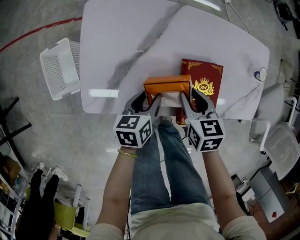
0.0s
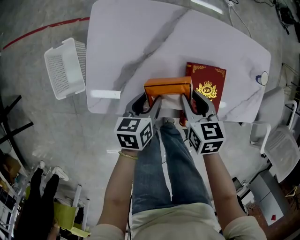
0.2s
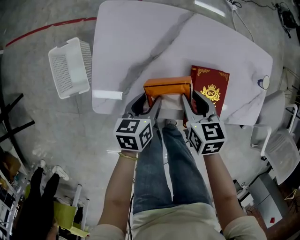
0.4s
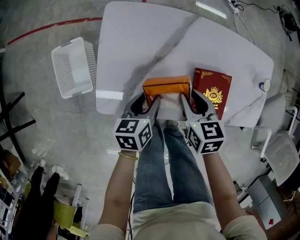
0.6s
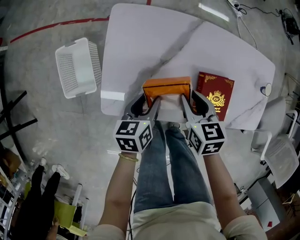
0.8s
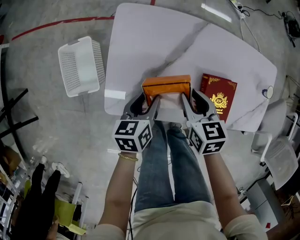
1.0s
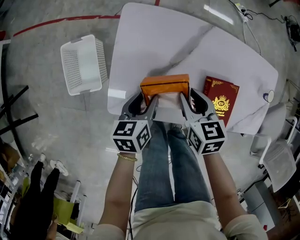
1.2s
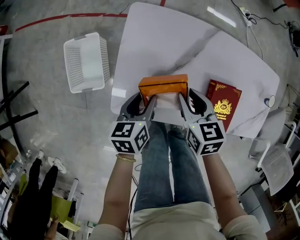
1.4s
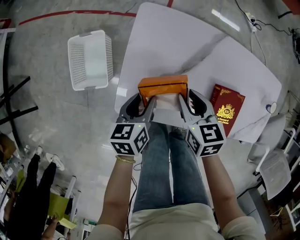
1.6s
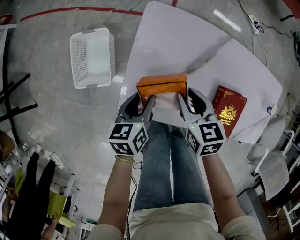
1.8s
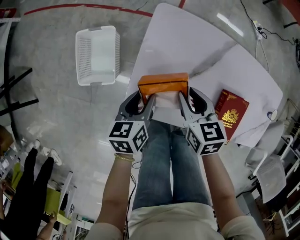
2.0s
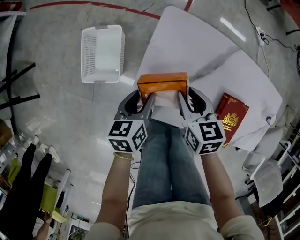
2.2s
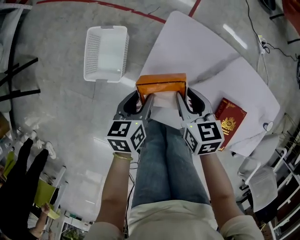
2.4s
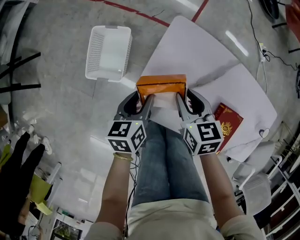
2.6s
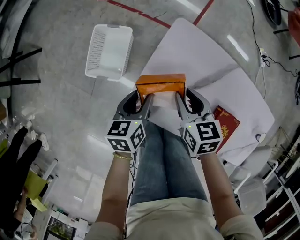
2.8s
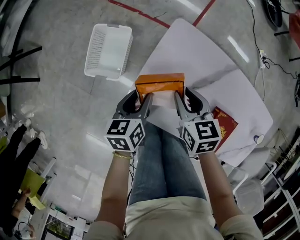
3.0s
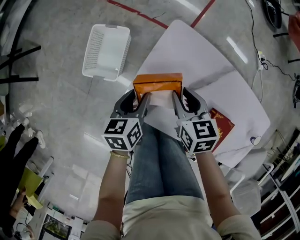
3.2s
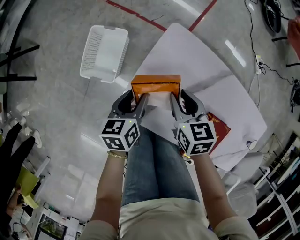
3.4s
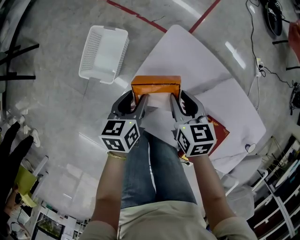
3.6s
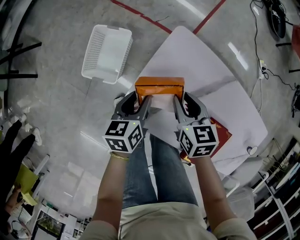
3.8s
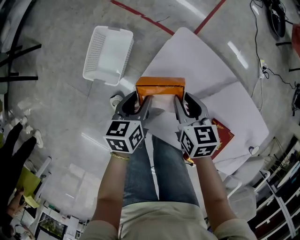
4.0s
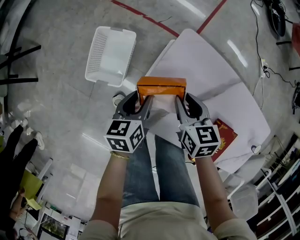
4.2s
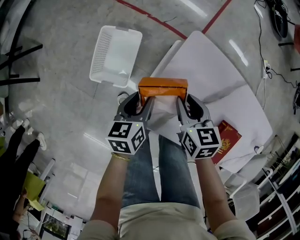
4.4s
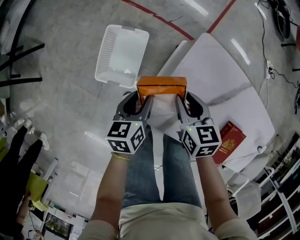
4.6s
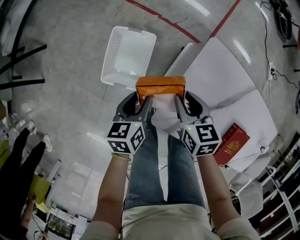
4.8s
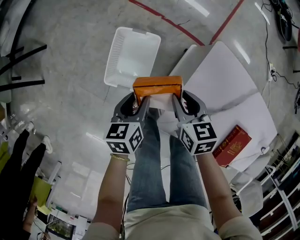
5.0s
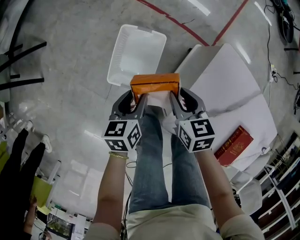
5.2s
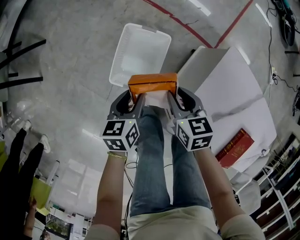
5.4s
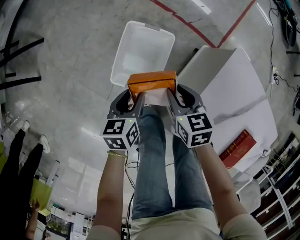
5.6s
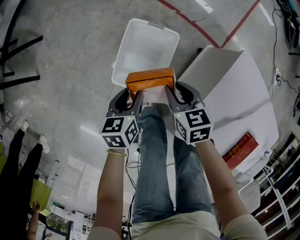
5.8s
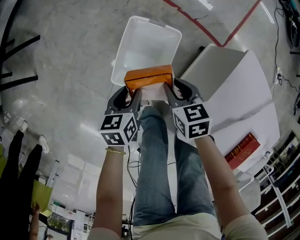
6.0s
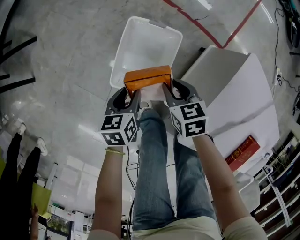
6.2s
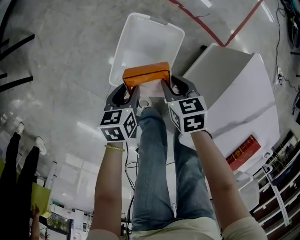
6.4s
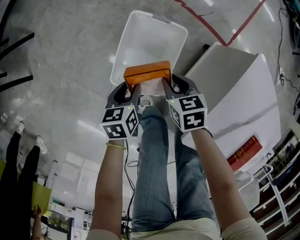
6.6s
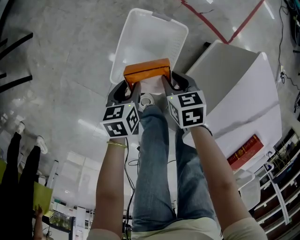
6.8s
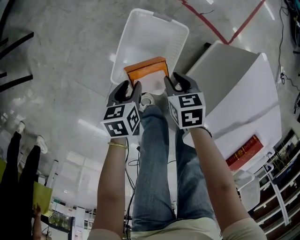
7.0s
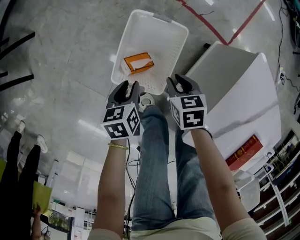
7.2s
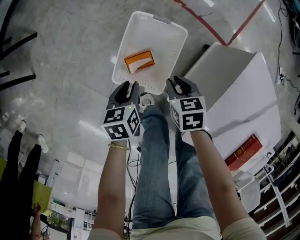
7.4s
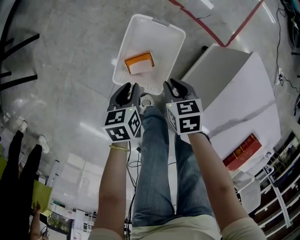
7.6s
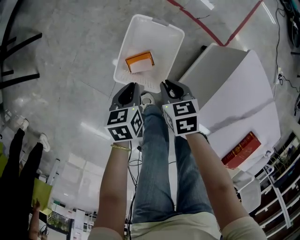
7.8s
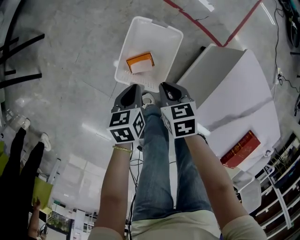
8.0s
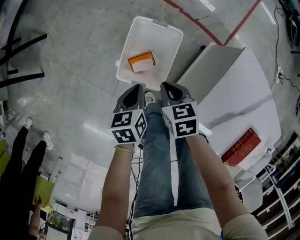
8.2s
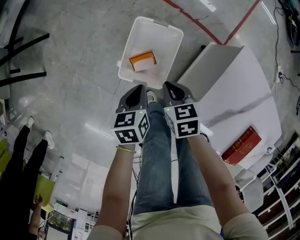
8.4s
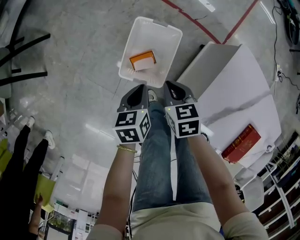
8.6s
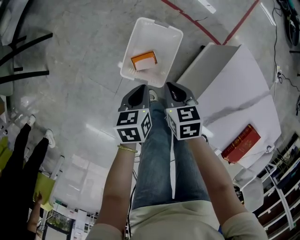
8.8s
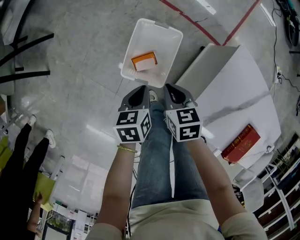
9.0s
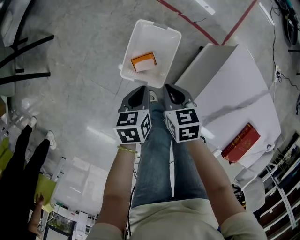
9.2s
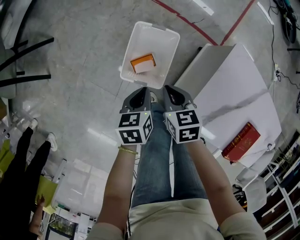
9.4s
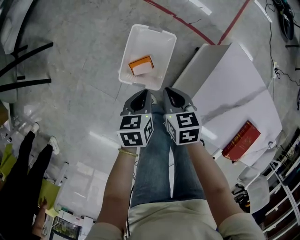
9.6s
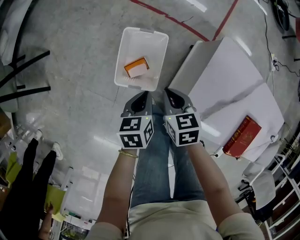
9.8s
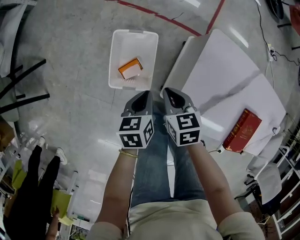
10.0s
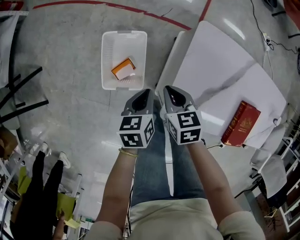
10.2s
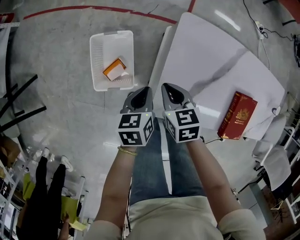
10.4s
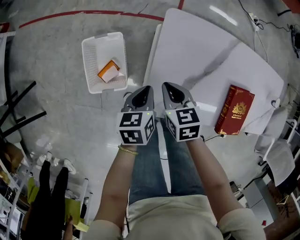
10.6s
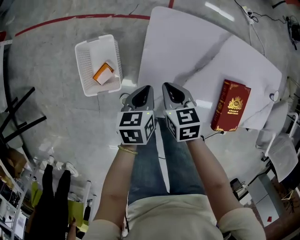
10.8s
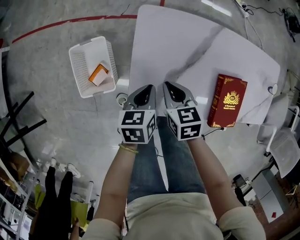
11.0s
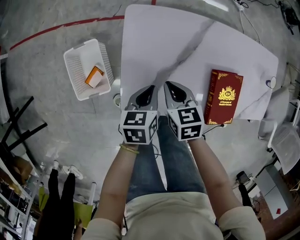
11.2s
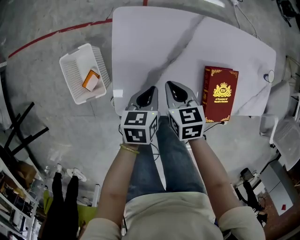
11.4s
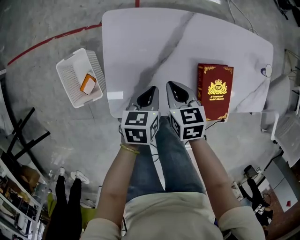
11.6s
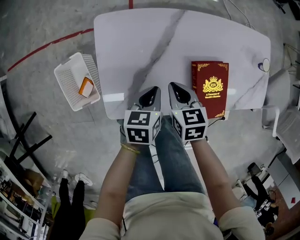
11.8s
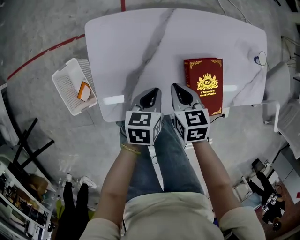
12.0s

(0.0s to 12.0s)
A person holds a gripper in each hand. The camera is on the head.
0.0s - 1.6s: Both grippers move to the left, roughly 15 cm.
1.6s - 3.0s: The right gripper moves to the left and forward, some 10 cm. The left gripper is displaced to the left by approximately 5 cm.
3.0s - 4.4s: The two grippers go approximately 5 cm to the left.
4.4s - 6.0s: The two grippers go approximately 25 cm to the left and downward.
6.0s - 7.6s: The left gripper travels downward and back again, roughly 10 cm each way.
7.6s - 9.0s: The grippers both shift upward by approximately 10 cm.
9.0s - 10.4s: Both grippers travel together to the right, approximately 20 cm. The left gripper turns by roughly 20 degrees.
10.4s - 12.0s: The right gripper changes place by some 35 cm, and rotates some 20 degrees. The left gripper shifts by approximately 35 cm, and rotates roughly 30 degrees.

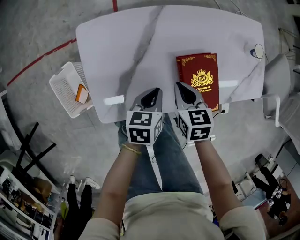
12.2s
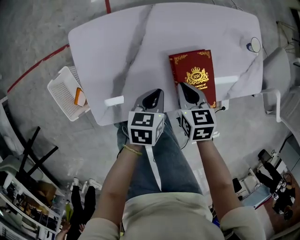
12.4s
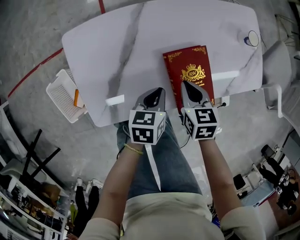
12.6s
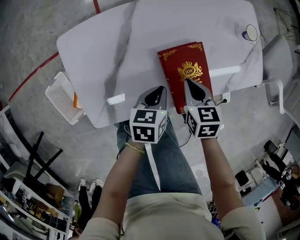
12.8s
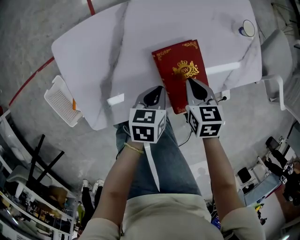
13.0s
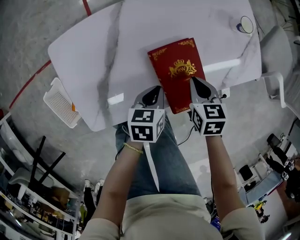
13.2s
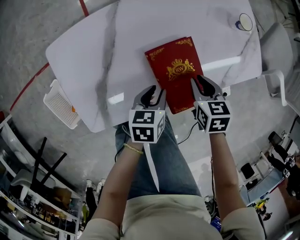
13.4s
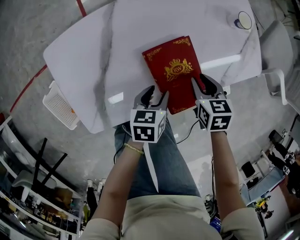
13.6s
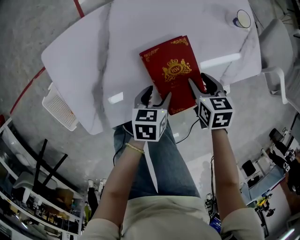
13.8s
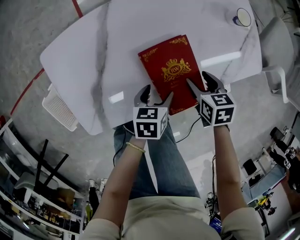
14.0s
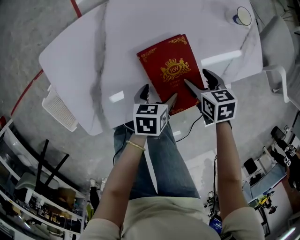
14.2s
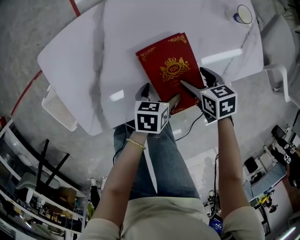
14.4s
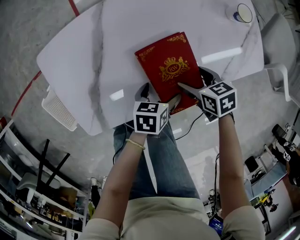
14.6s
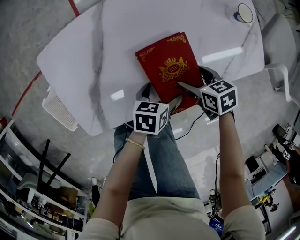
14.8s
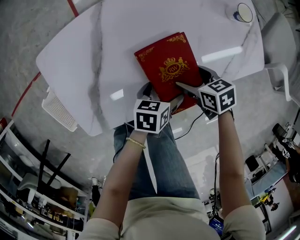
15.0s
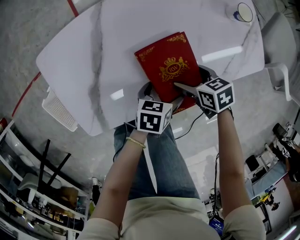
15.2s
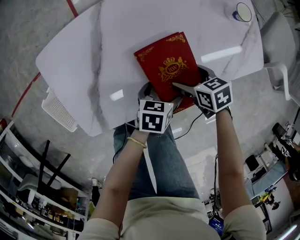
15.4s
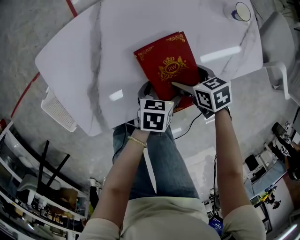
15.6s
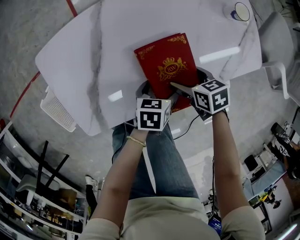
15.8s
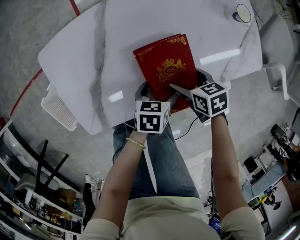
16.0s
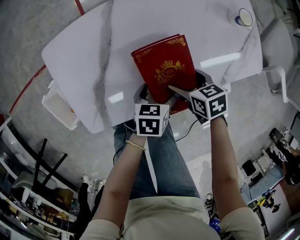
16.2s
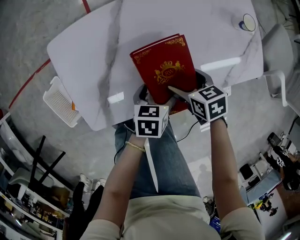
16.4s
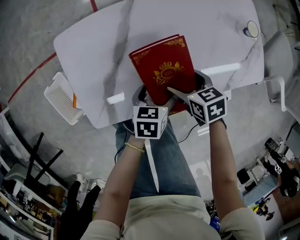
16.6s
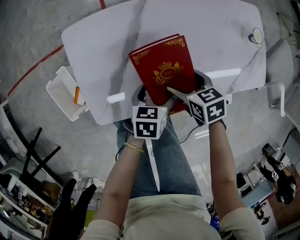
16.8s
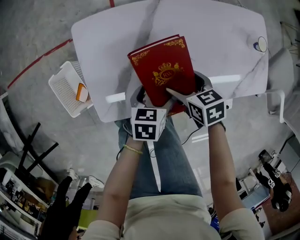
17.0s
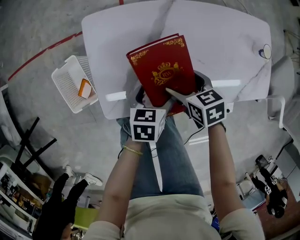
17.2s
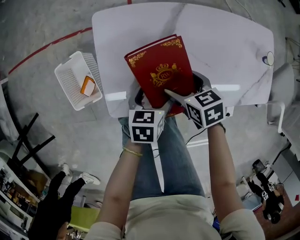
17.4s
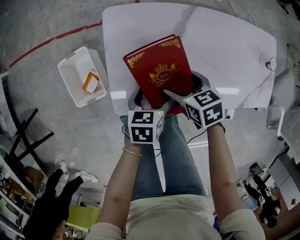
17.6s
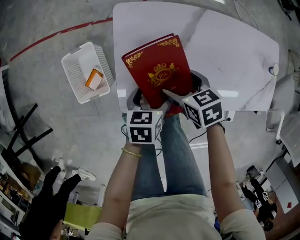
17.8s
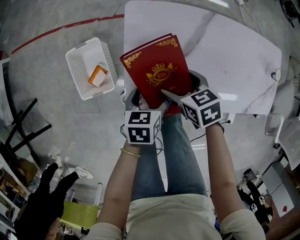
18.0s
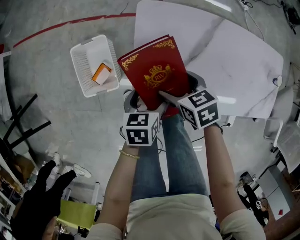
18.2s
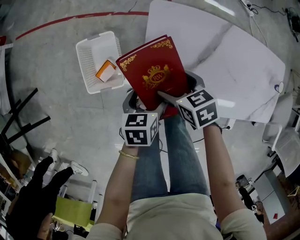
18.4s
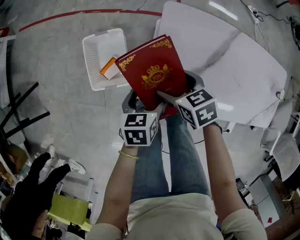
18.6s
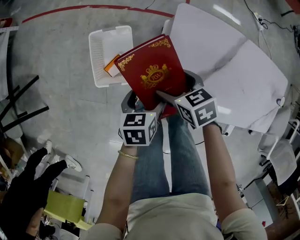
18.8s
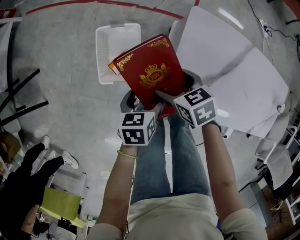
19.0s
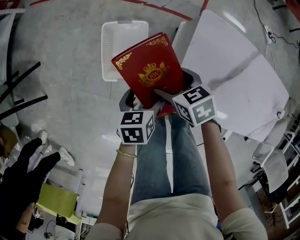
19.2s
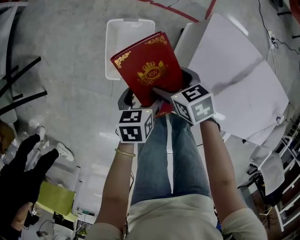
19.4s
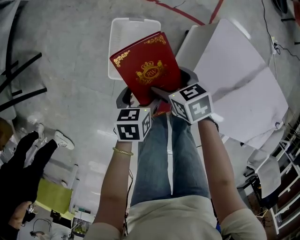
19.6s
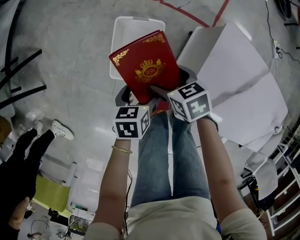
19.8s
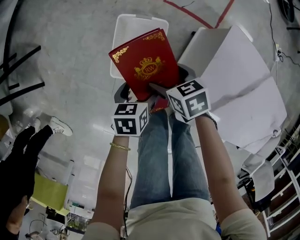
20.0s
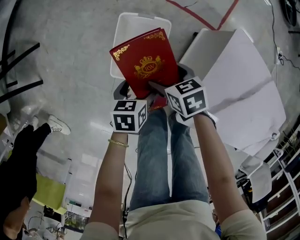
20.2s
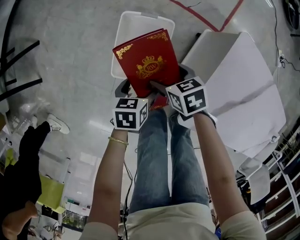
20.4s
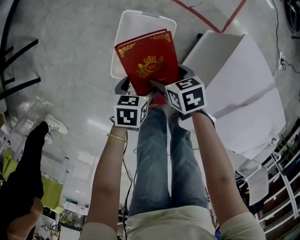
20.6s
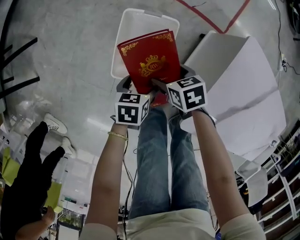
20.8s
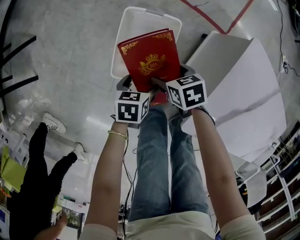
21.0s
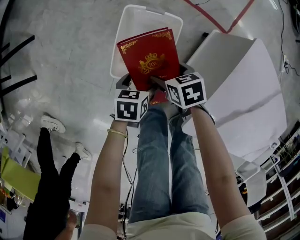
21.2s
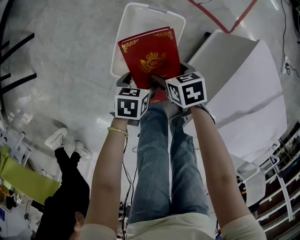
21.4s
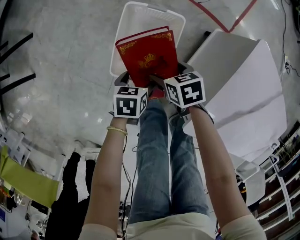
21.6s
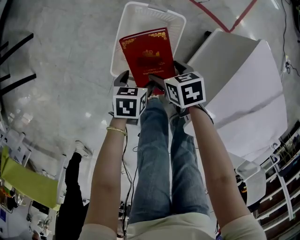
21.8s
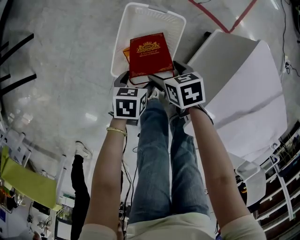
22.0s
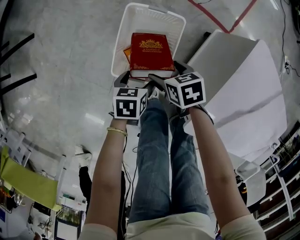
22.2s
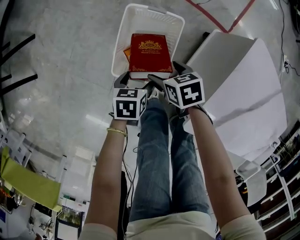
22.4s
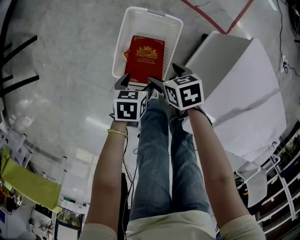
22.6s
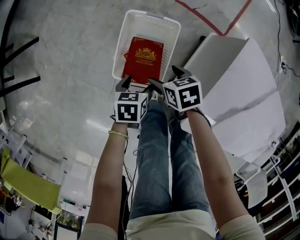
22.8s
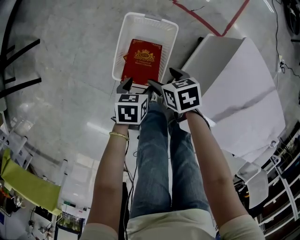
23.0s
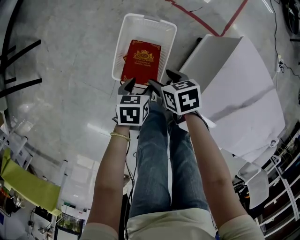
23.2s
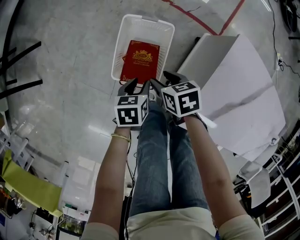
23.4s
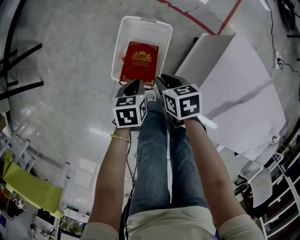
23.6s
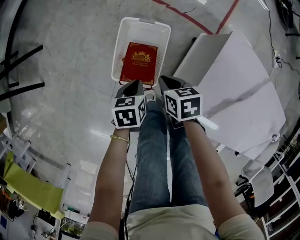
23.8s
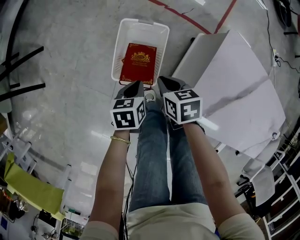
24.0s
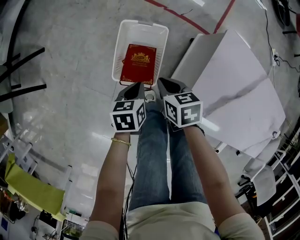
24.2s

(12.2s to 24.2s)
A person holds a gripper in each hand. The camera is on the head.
12.2s - 13.8s: The right gripper moves to the right, about 20 cm, and opens; the left gripper shifts approximately 15 cm to the right and downward, and opens its fingers.
13.8s - 15.2s: The left gripper ends up about 5 cm from where it was, and opens up; the right gripper changes place by about 5 cm, swivels about 20 degrees, and opens its fingers.
15.2s - 16.6s: The right gripper shifts by about 10 cm. Meanwhile the left gripper changes place by about 10 cm.
16.6s - 18.2s: Both grippers travel together to the left, some 30 cm. The left gripper turns by approximately 20 degrees, while the right gripper changes its angle by approximately 20 degrees.
18.2s - 19.8s: The right gripper travels to the left and forward by about 30 cm, and changes its angle by approximately 20 degrees, while the left gripper goes approximately 30 cm to the left, and turns by about 20 degrees.
19.8s - 21.2s: The two grippers go some 15 cm downward.
21.2s - 22.6s: The grippers move only a little.
22.6s - 24.2s: The grippers both shift upward by some 10 cm. The left gripper closes up, while the right gripper closes up.
